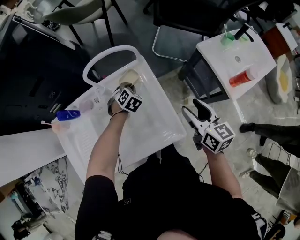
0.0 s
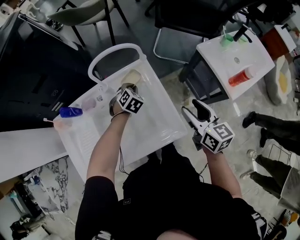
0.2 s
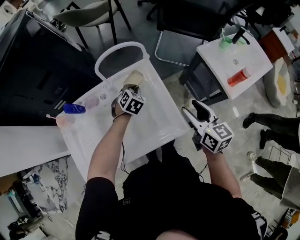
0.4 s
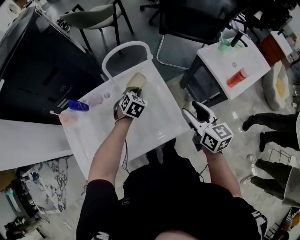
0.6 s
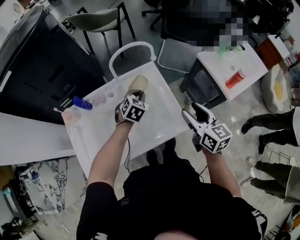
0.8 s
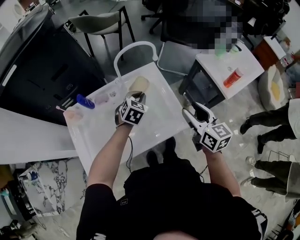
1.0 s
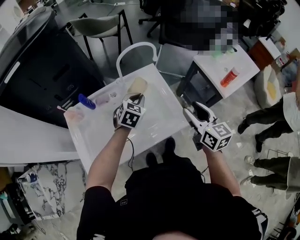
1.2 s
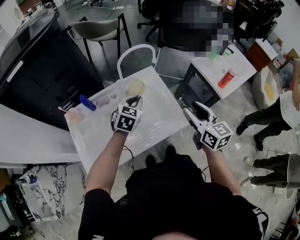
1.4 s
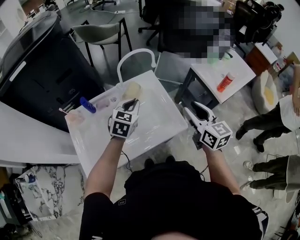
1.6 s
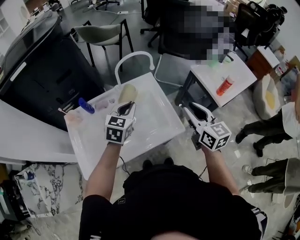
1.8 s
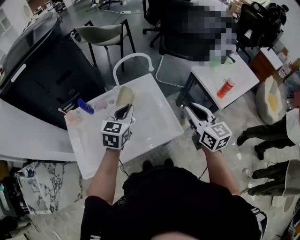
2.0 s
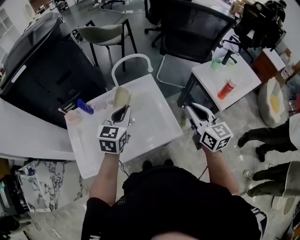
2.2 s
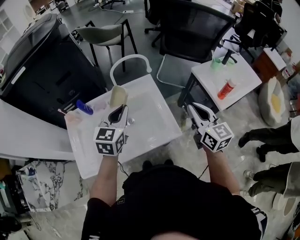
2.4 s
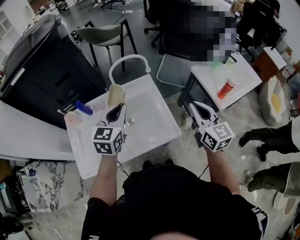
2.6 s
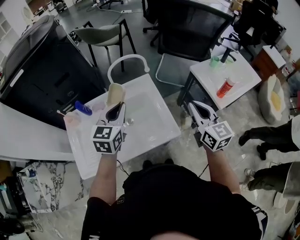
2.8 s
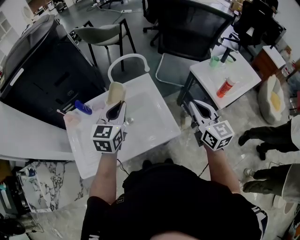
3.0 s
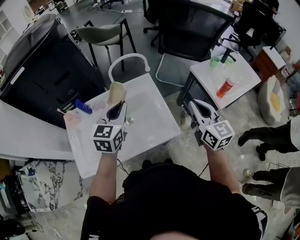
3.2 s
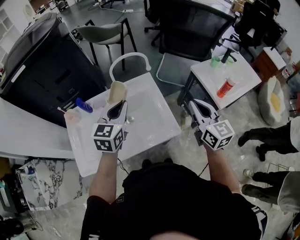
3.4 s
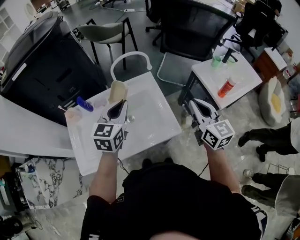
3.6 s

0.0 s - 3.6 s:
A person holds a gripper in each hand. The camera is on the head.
0.0 s - 1.8 s: The left gripper moves upward and backward, approximately 30 cm, and points its fingers about 30 degrees further upward, while the right gripper moves upward, backward and to the left, some 15 cm, and closes its fingers.
1.8 s - 3.6 s: The left gripper heads upward, covering approximately 5 cm, while the right gripper changes place by about 5 cm, and closes up.

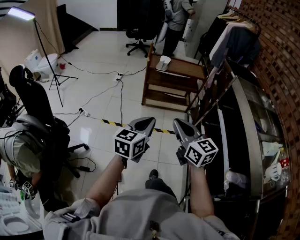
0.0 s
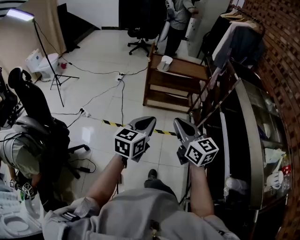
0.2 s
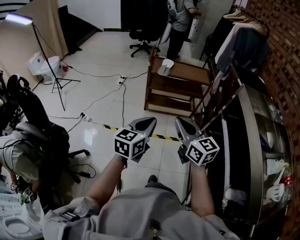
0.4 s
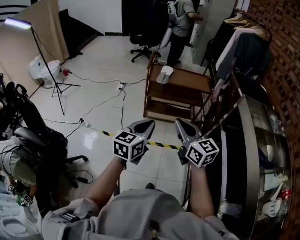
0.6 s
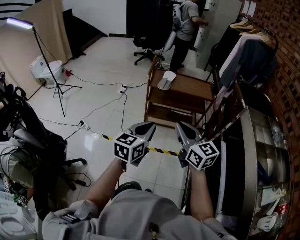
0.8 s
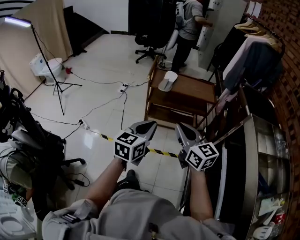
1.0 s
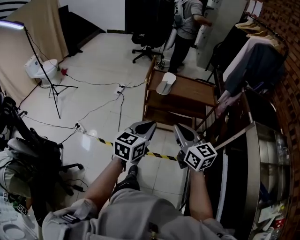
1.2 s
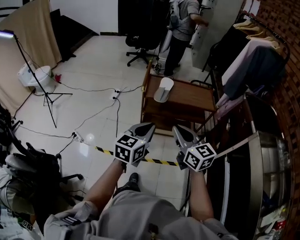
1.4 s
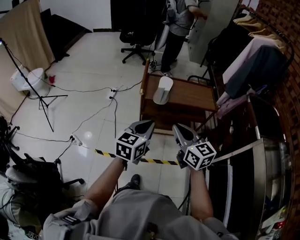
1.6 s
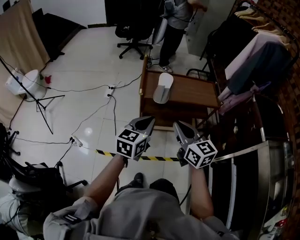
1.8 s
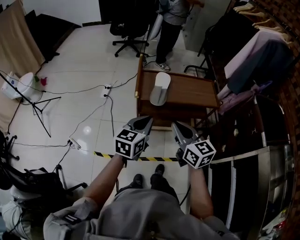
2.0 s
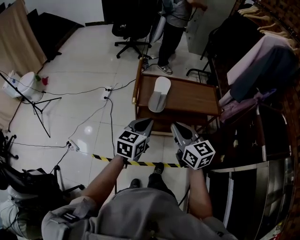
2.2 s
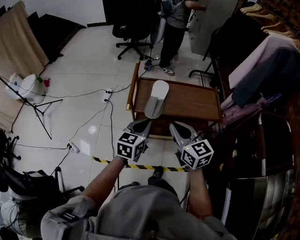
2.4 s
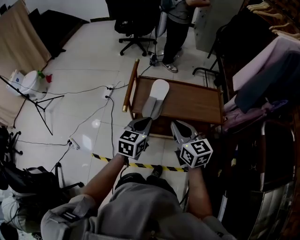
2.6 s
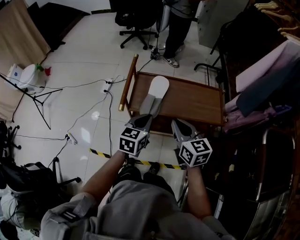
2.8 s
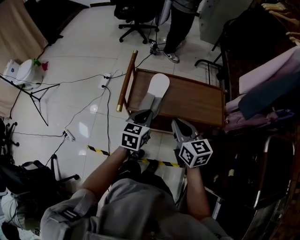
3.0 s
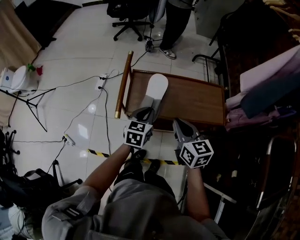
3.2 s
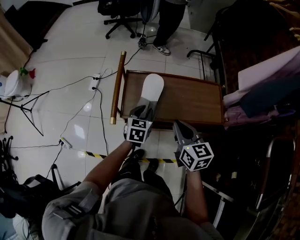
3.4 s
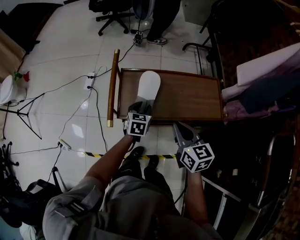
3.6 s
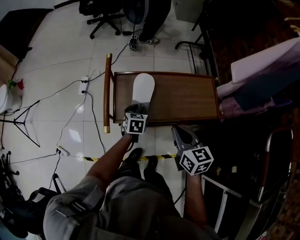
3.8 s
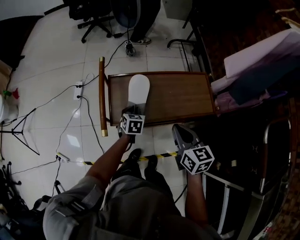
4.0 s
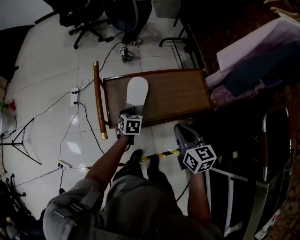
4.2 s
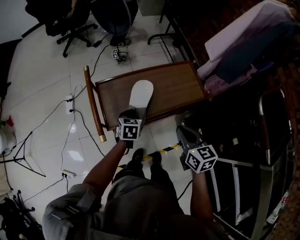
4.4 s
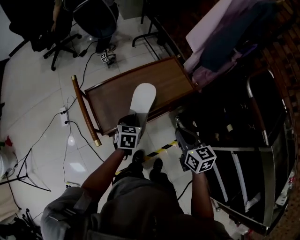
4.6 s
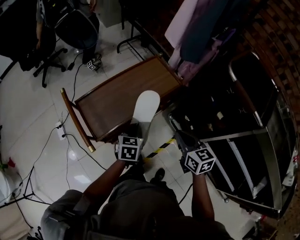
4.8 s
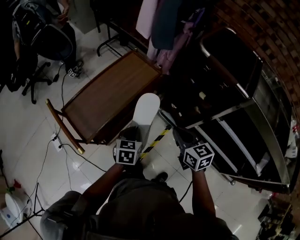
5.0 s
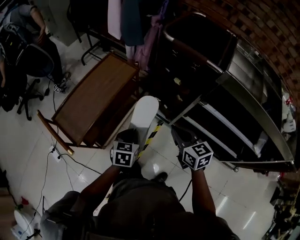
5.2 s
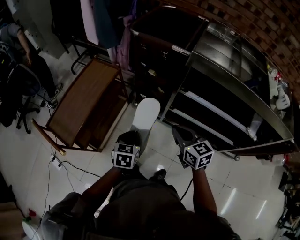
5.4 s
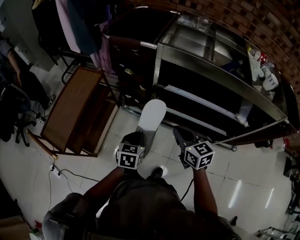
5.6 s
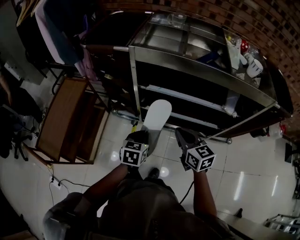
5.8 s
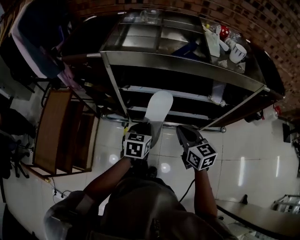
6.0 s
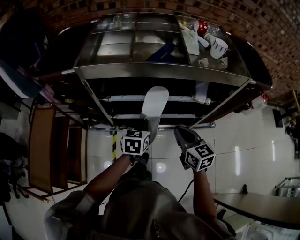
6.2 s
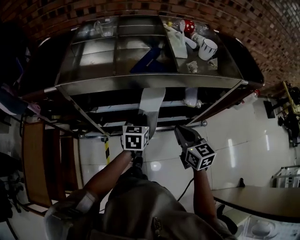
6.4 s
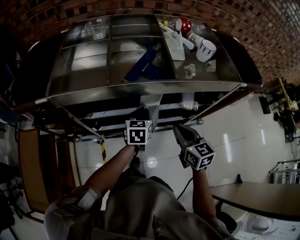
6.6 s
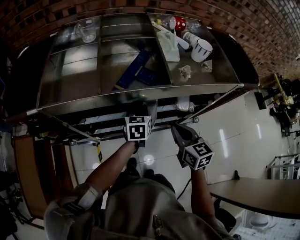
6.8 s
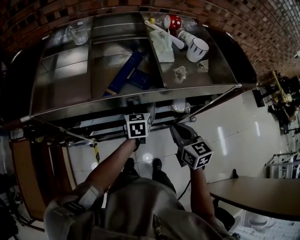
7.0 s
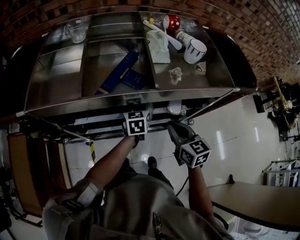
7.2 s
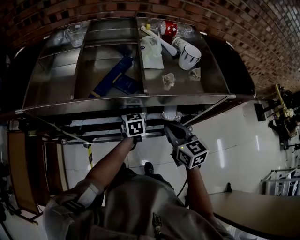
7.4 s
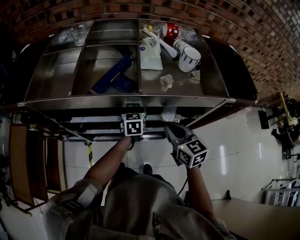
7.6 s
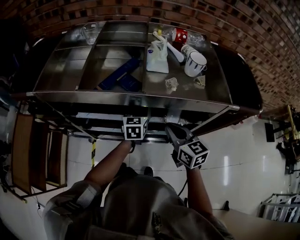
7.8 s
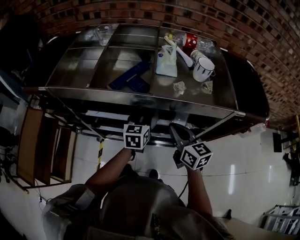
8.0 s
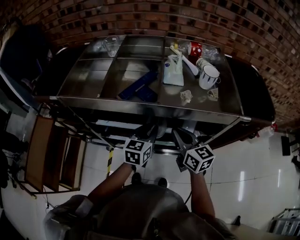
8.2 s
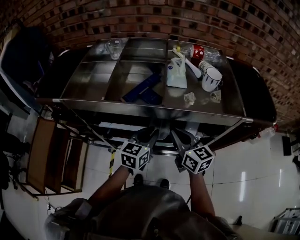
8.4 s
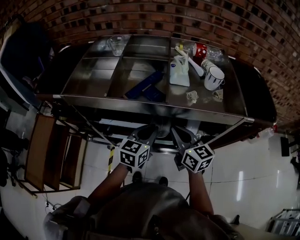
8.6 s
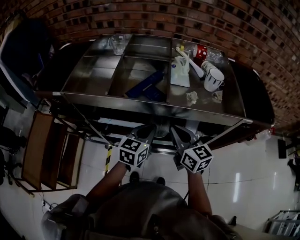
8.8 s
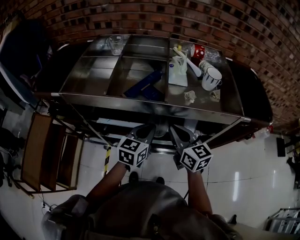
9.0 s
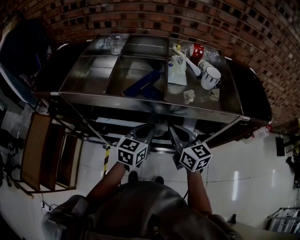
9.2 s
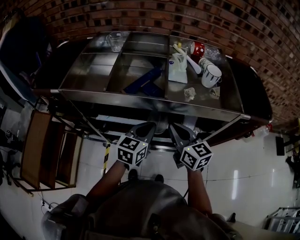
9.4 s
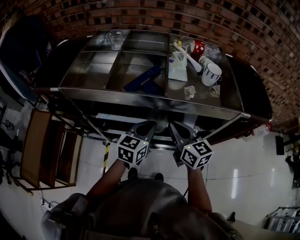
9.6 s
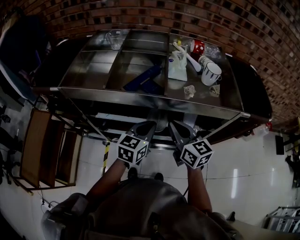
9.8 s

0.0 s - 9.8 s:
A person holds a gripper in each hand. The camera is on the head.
0.0 s - 1.4 s: Both grippers are carried forward, approximately 40 cm.
1.4 s - 2.8 s: Both grippers move forward, some 35 cm.
2.8 s - 4.2 s: The right gripper changes place by roughly 10 cm, and changes its angle by roughly 20 degrees. The left gripper travels downward and forward by roughly 25 cm, changes its angle by some 30 degrees, and opens, then closes once more.
4.2 s - 5.6 s: Both grippers are carried roughly 60 cm. The right gripper swivels roughly 50 degrees. The left gripper turns by some 70 degrees.
5.6 s - 7.0 s: The left gripper ends up about 50 cm from where it was, and rotates some 20 degrees, while the right gripper changes place by roughly 35 cm, and swivels about 40 degrees.
7.0 s - 8.4 s: The left gripper moves upward and backward, about 10 cm. Meanwhile the right gripper ends up roughly 5 cm from where it was, and changes its angle by some 30 degrees.
8.4 s - 9.8 s: There are only small adjustments of the grippers.

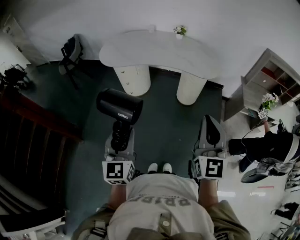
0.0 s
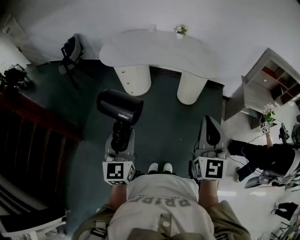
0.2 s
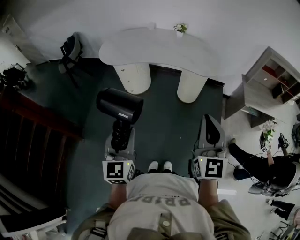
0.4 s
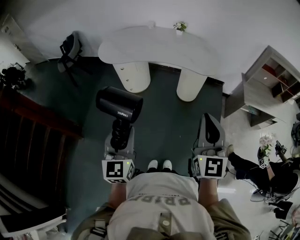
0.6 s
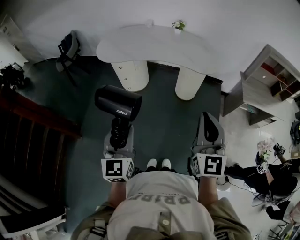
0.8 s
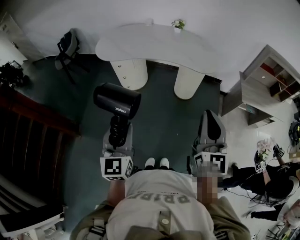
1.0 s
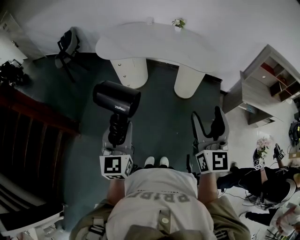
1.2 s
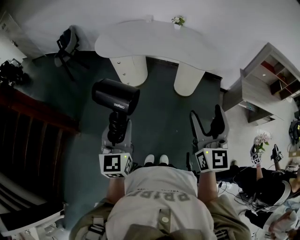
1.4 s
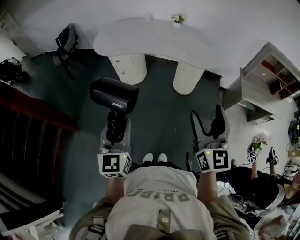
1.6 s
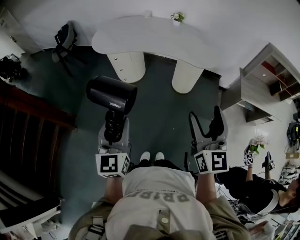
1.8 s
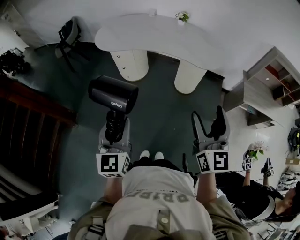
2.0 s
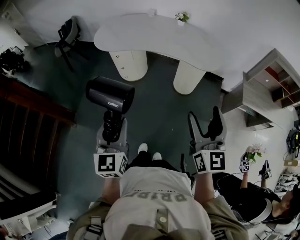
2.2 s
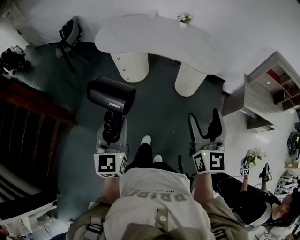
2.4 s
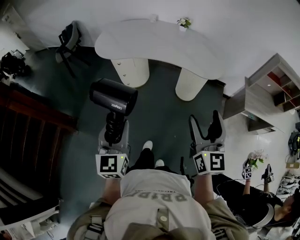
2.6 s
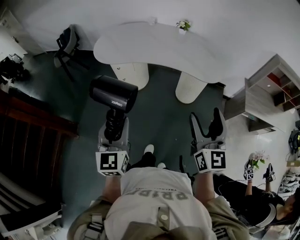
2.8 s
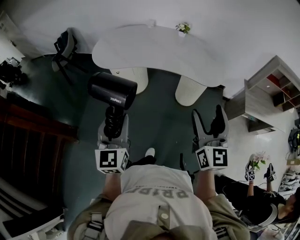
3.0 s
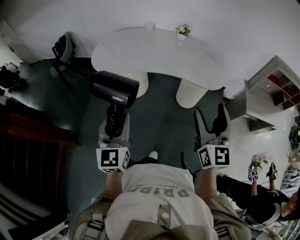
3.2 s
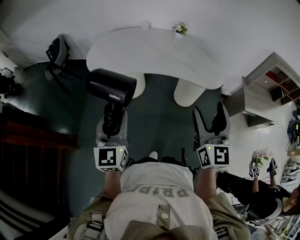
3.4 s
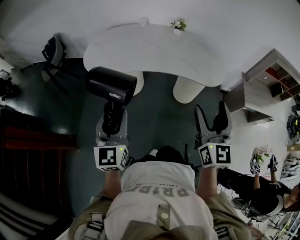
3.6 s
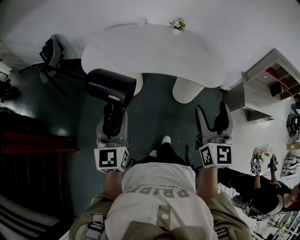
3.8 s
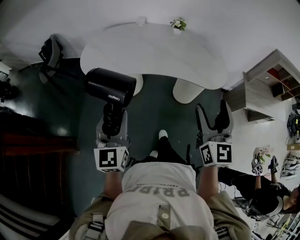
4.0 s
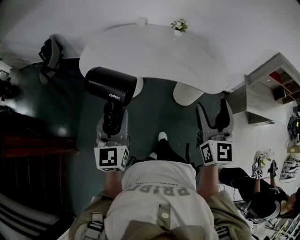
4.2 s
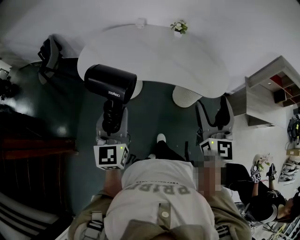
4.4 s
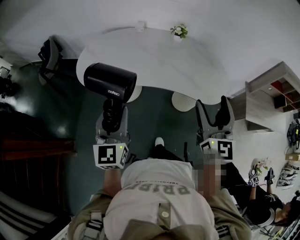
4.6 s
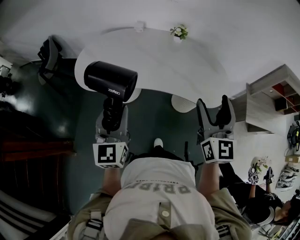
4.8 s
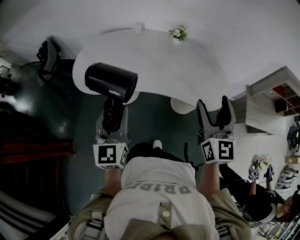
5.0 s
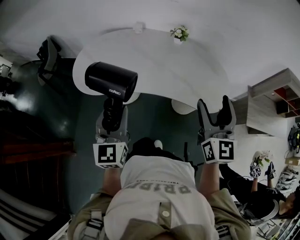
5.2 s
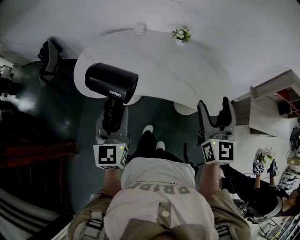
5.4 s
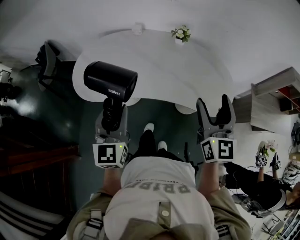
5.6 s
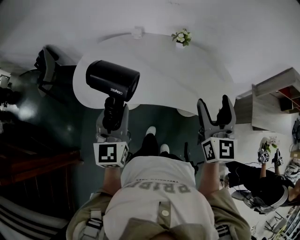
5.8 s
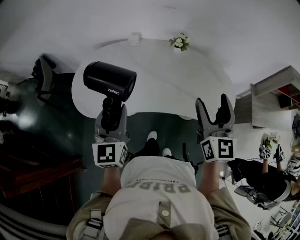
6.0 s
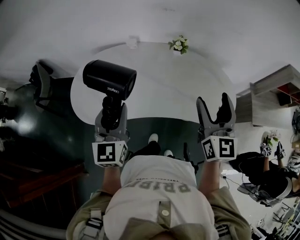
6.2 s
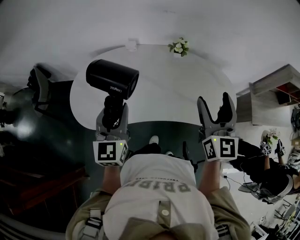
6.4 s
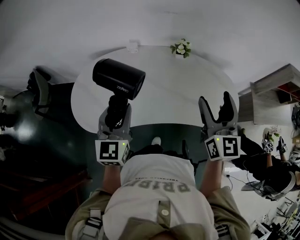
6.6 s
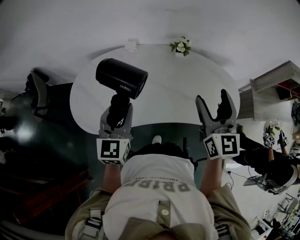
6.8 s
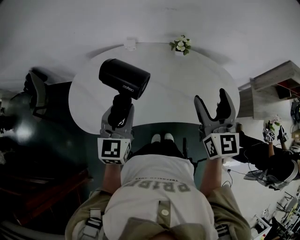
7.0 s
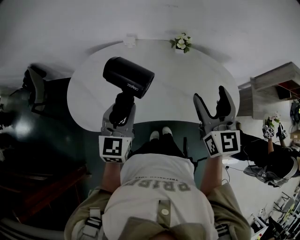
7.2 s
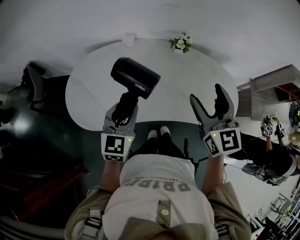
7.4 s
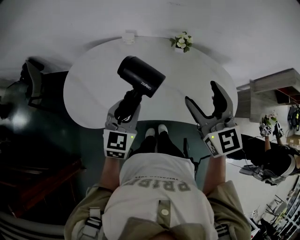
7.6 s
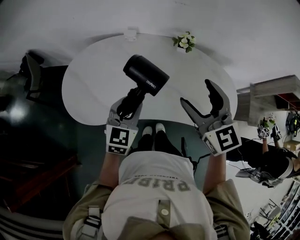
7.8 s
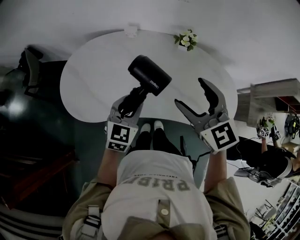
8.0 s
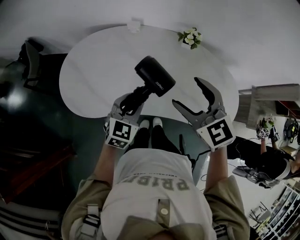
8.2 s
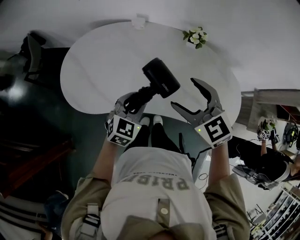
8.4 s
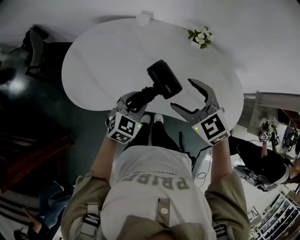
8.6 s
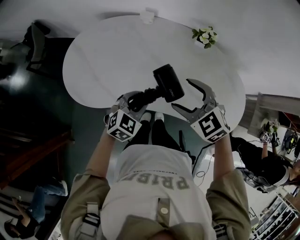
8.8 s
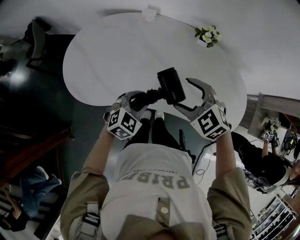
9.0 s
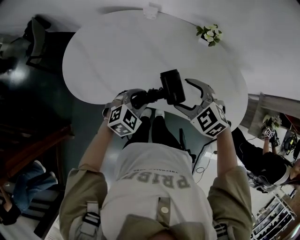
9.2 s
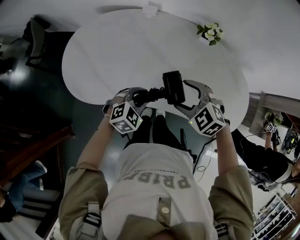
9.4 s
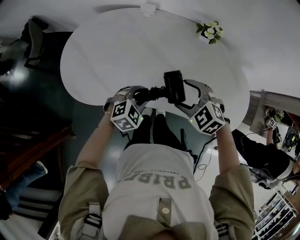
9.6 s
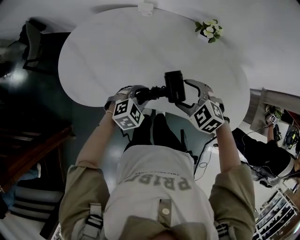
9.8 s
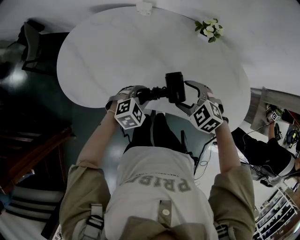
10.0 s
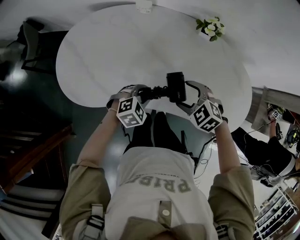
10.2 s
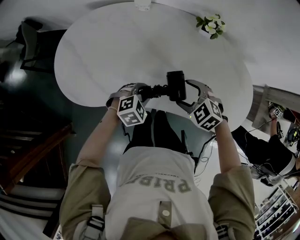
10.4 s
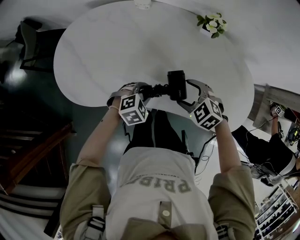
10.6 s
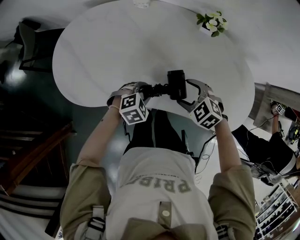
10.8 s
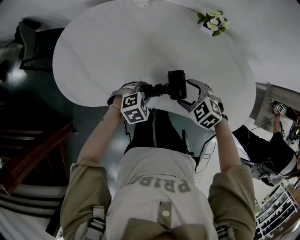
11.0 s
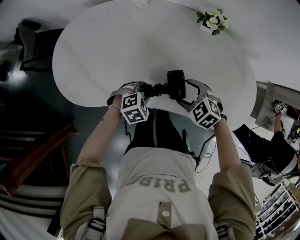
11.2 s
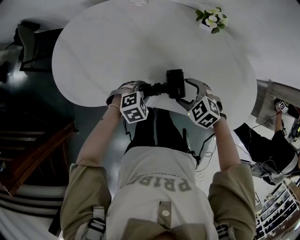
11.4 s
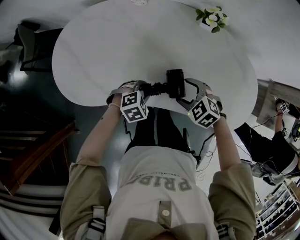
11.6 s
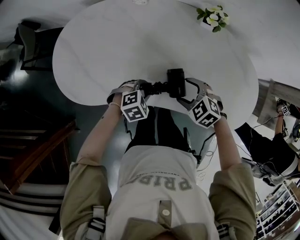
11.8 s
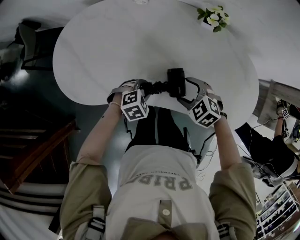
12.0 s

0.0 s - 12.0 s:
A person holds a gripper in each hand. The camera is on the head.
0.0 s - 1.6 s: The right gripper opens up.
1.6 s - 3.0 s: The grippers both shift forward by about 15 cm.
3.0 s - 4.4 s: The grippers both shift forward by some 15 cm.
4.4 s - 6.0 s: The grippers both shift forward by approximately 25 cm.
6.0 s - 7.6 s: The left gripper travels forward and downward by roughly 15 cm, and turns by about 20 degrees. The right gripper moves forward and to the left, some 15 cm, and turns by roughly 20 degrees.
7.6 s - 9.0 s: The right gripper heads downward and to the left, covering approximately 20 cm, and tilts its fingers about 30 degrees downward, while the left gripper shifts about 15 cm downward, and changes its angle by roughly 30 degrees.
9.0 s - 10.4 s: Both grippers move downward, roughly 10 cm. The left gripper turns by approximately 20 degrees.
10.4 s - 12.0 s: The grippers make only small movements.
